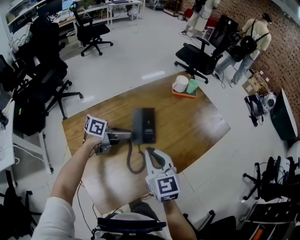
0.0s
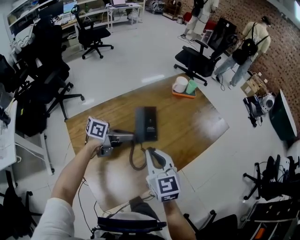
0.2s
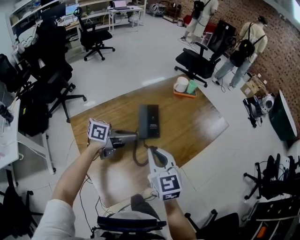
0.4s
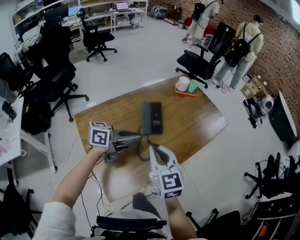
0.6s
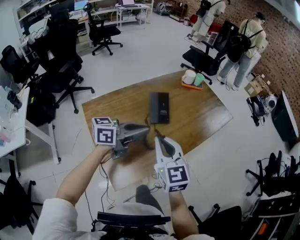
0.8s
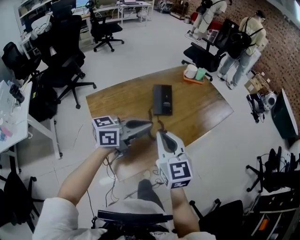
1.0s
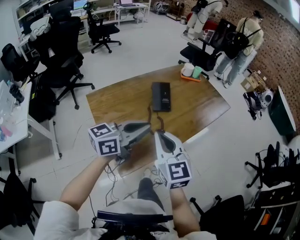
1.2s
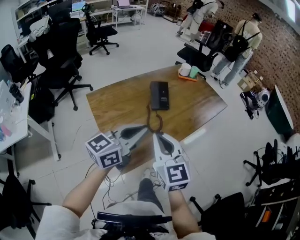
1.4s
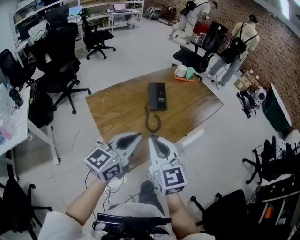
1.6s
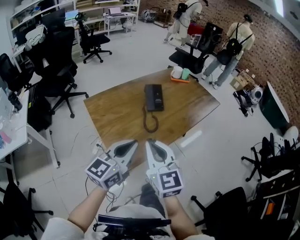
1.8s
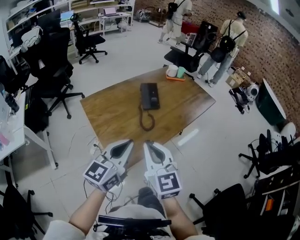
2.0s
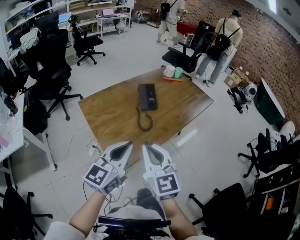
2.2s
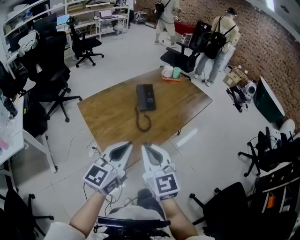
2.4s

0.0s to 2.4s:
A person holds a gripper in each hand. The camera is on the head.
0.0s to 1.2s: The right gripper goes about 20 cm backward. Meanwhile the left gripper shifts approximately 30 cm backward and upward, and changes its angle by approximately 30 degrees.
1.2s to 2.4s: Both grippers travel together backward, some 10 cm. The left gripper rotates approximately 30 degrees.
